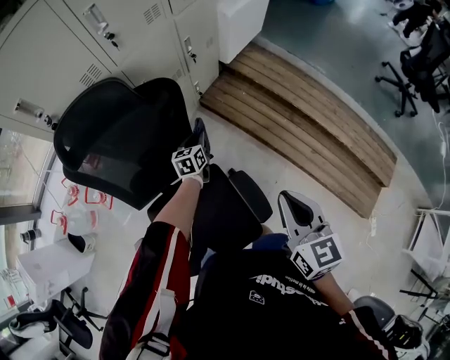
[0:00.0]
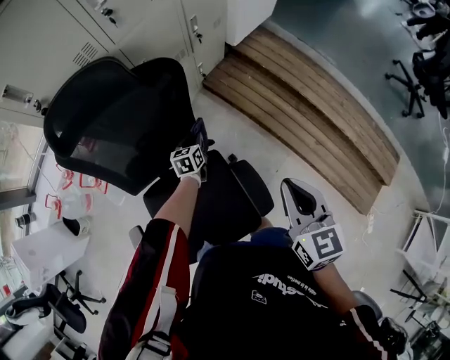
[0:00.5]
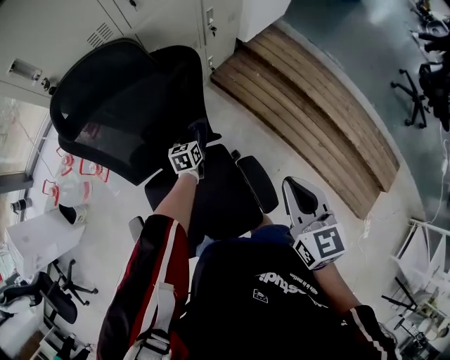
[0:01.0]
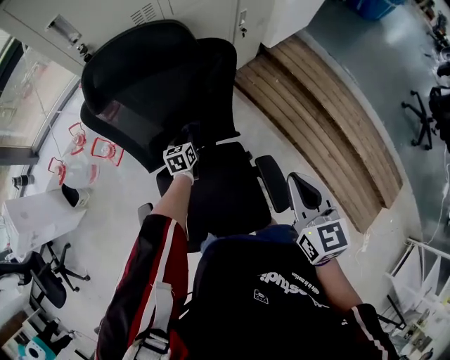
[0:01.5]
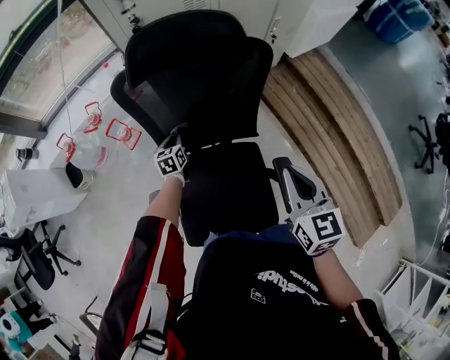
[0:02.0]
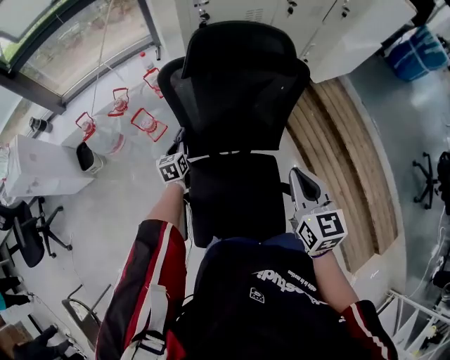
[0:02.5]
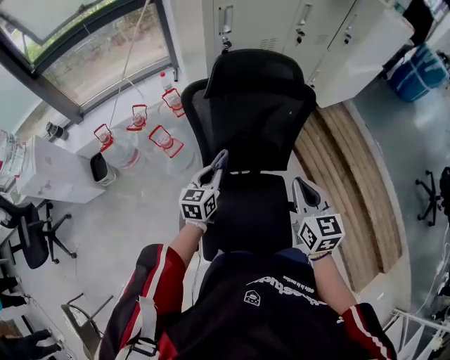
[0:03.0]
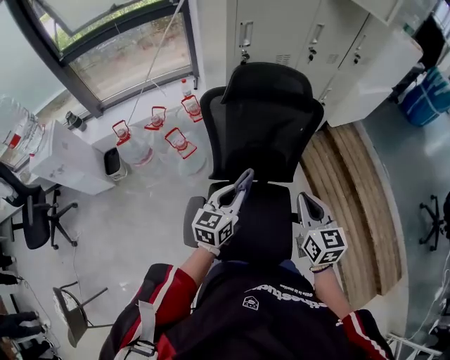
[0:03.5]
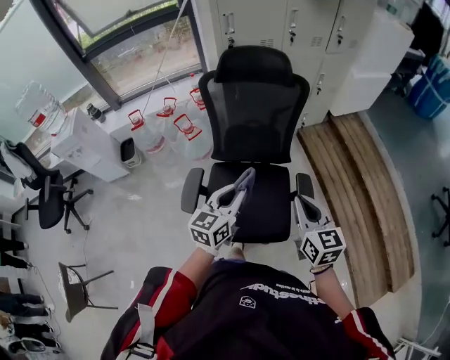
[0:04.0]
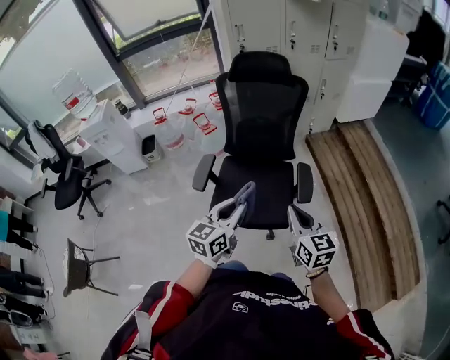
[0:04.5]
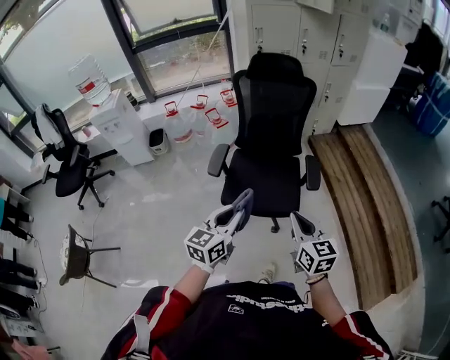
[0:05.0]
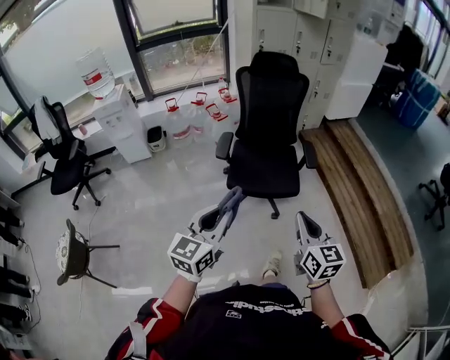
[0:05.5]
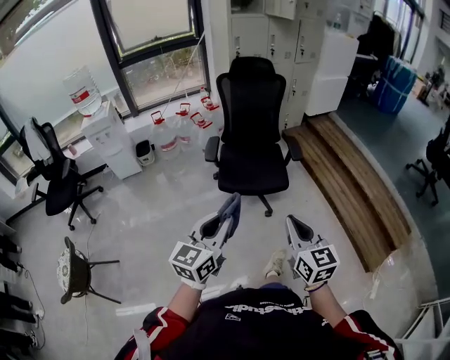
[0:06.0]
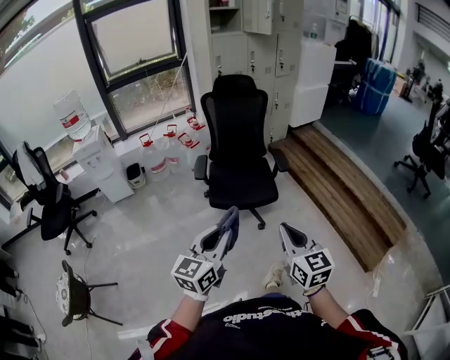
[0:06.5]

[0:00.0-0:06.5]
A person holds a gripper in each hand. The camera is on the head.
0:00.0 to 0:02.0: The right gripper moves to the left, roughly 20 cm; the left gripper travels to the left by approximately 35 cm, and rotates approximately 30 degrees.
0:02.0 to 0:04.5: The pair of grippers is taken backward, roughly 50 cm. The right gripper swivels about 20 degrees. Meanwhile the left gripper is displaced upward by approximately 35 cm, and turns by about 30 degrees.
0:04.5 to 0:06.5: The two grippers travel together, backward, roughly 50 cm.

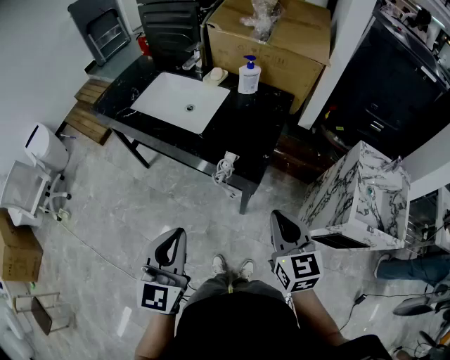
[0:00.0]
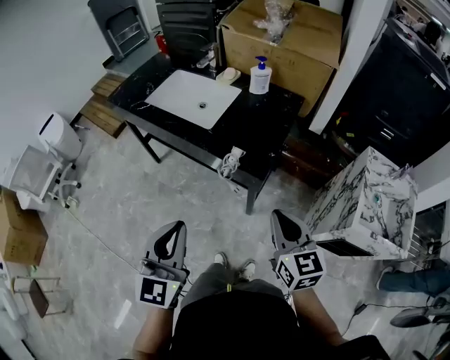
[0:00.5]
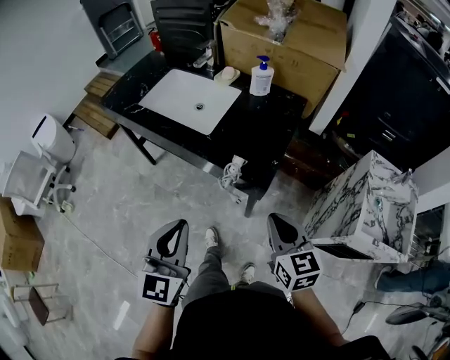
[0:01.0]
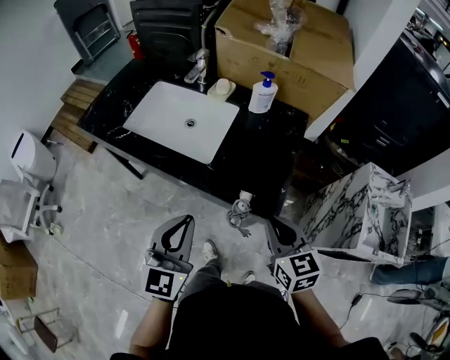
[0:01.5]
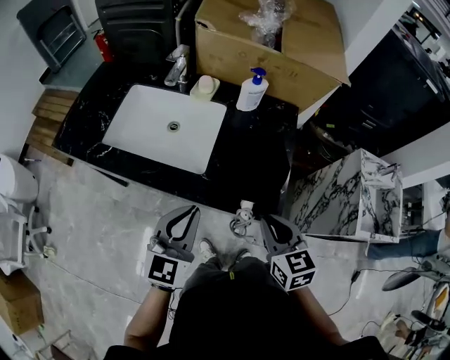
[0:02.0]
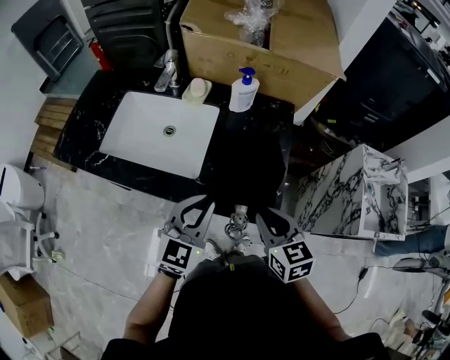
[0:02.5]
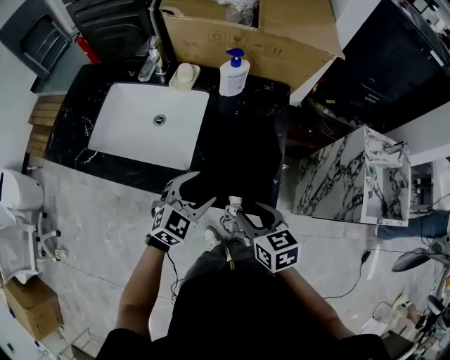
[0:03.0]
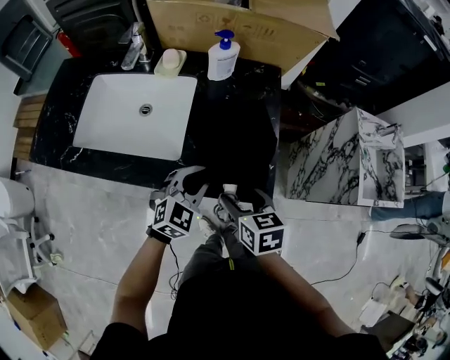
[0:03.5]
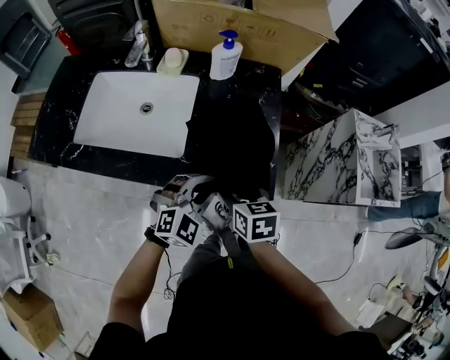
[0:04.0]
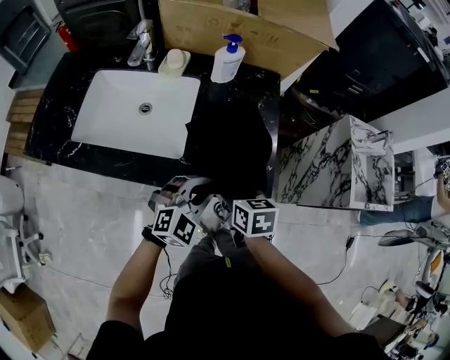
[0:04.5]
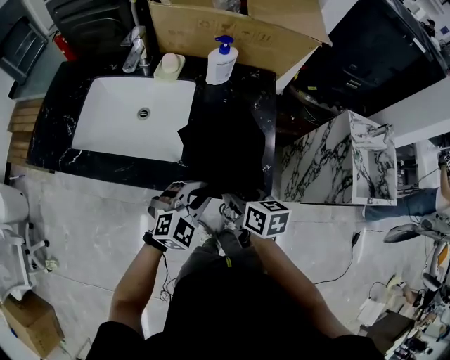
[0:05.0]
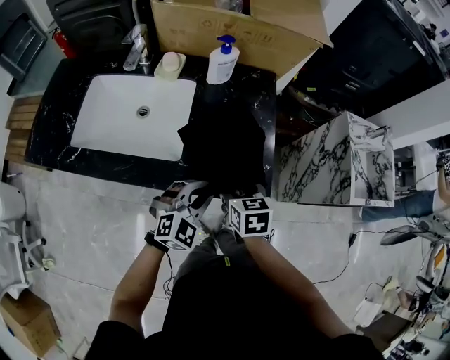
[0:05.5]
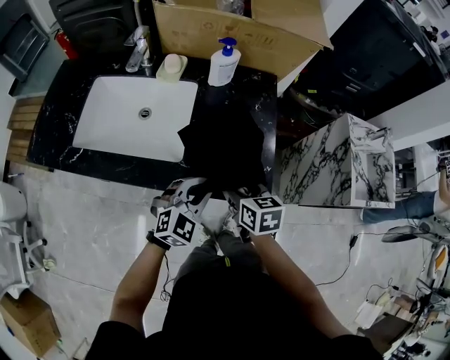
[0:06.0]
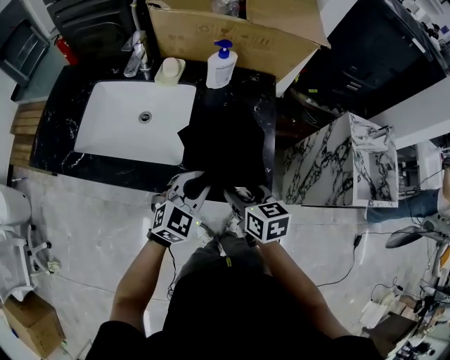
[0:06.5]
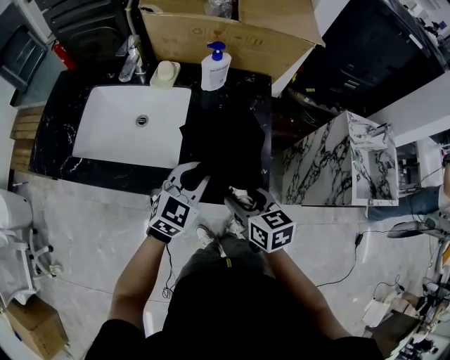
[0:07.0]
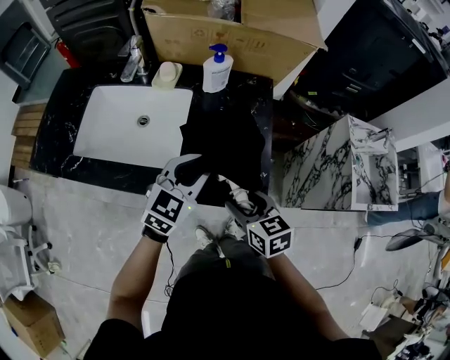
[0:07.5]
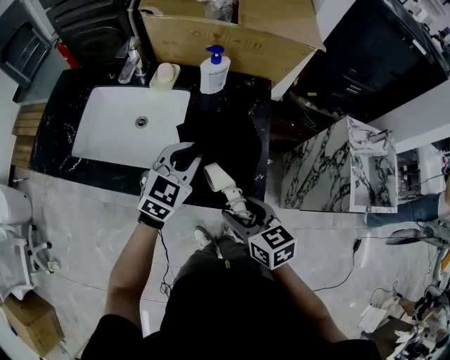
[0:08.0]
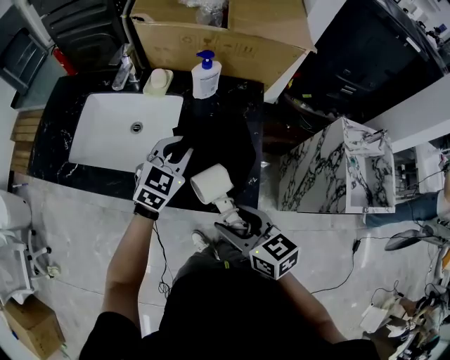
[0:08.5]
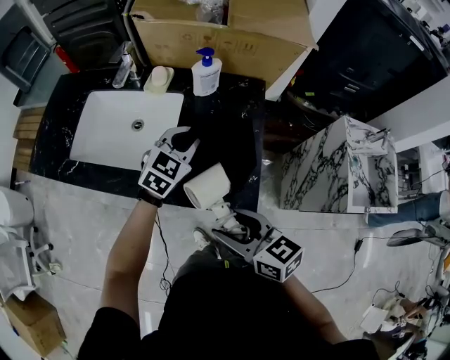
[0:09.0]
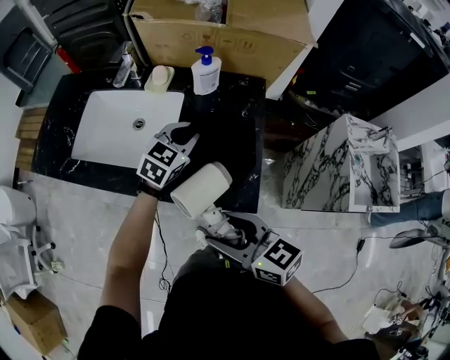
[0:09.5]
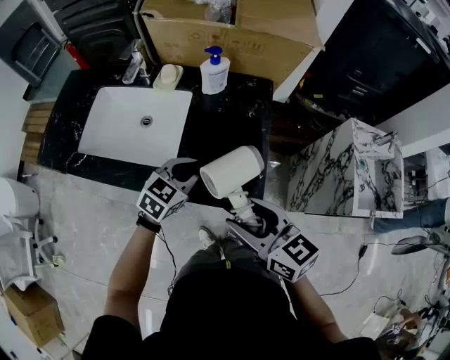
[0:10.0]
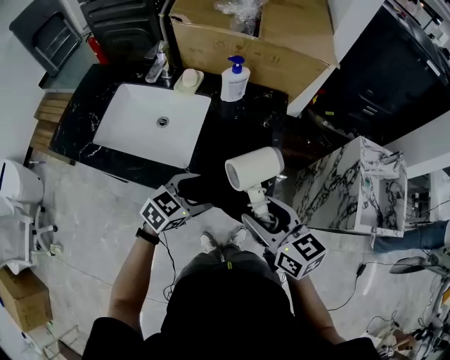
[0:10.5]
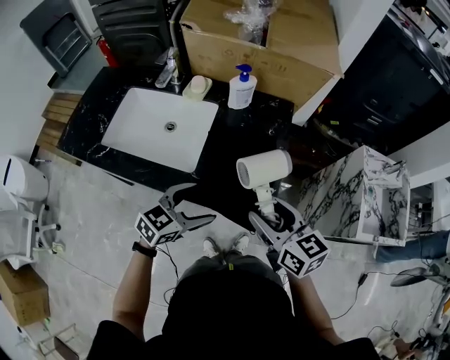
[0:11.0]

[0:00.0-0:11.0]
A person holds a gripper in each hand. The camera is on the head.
0:00.0 to 0:02.0: The right gripper heads forward and to the left, covering approximately 20 cm, while the left gripper travels forward by approximately 25 cm, and changes its angle by about 20 degrees.
0:02.0 to 0:03.5: The right gripper is displaced downward by about 10 cm, and opens, while the left gripper is displaced downward, to the right and forward by some 20 cm, turns by about 40 degrees, and opens, then closes once more.
0:03.5 to 0:05.5: The left gripper moves roughly 5 cm.
0:05.5 to 0:07.5: The left gripper goes roughly 10 cm forward and upward, and swivels approximately 20 degrees, while the right gripper ends up approximately 5 cm from where it was.
0:07.5 to 0:09.0: The left gripper shifts approximately 10 cm forward. The right gripper goes roughly 10 cm upward and backward, and changes its angle by approximately 20 degrees.
0:09.0 to 0:11.0: The right gripper is displaced to the right by roughly 5 cm. The left gripper travels backward by roughly 20 cm, changes its angle by approximately 20 degrees, and opens up.

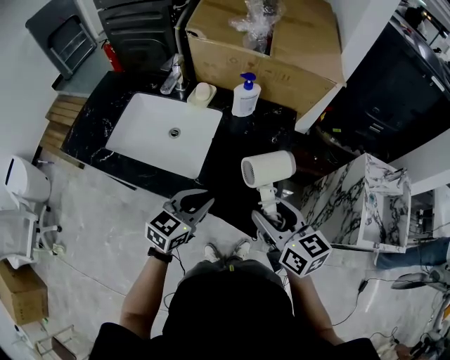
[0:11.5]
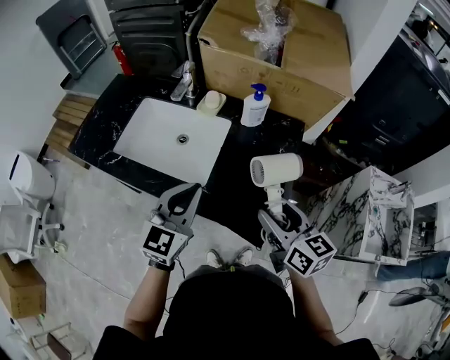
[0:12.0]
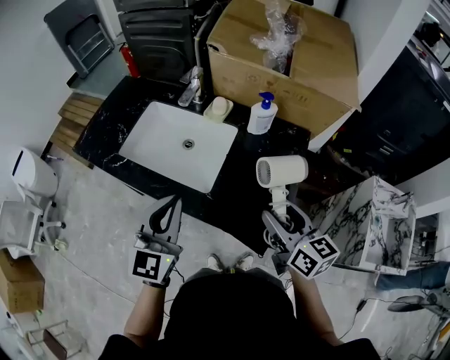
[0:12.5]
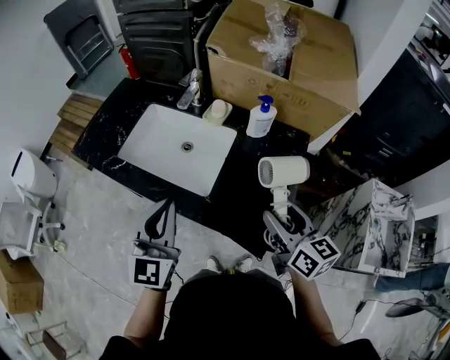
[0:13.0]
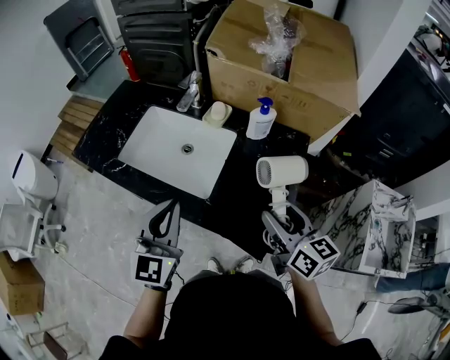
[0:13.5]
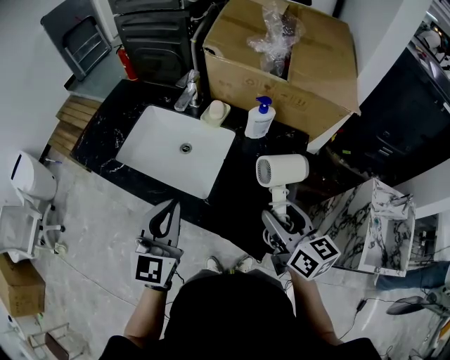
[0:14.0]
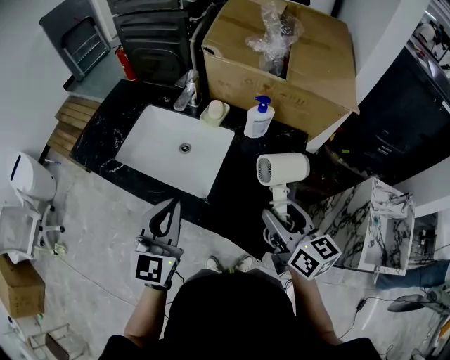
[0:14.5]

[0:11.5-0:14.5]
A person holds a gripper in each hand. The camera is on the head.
0:11.5 to 0:13.0: The left gripper moves upward and to the left, approximately 20 cm, and swivels roughly 40 degrees, while the right gripper moves forward, roughly 5 cm.
0:13.0 to 0:14.5: There are only small adjustments of the grippers.

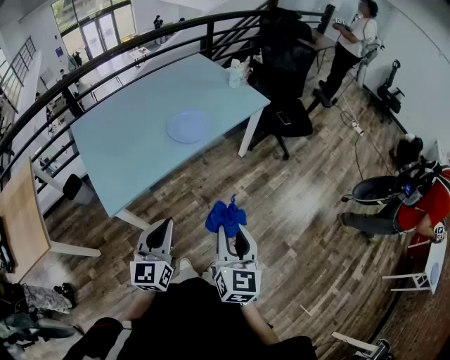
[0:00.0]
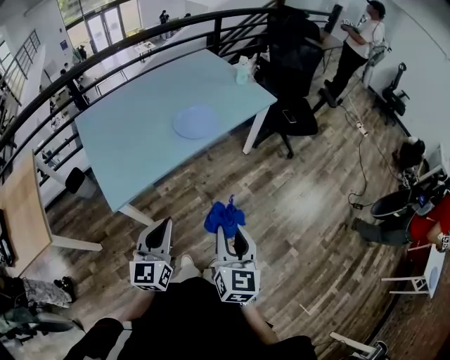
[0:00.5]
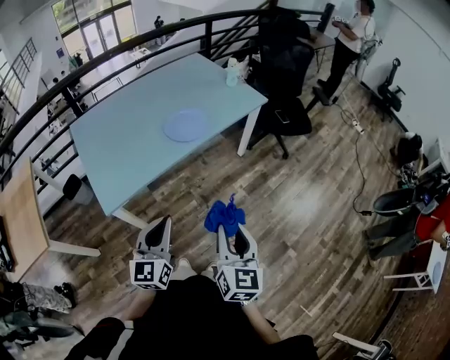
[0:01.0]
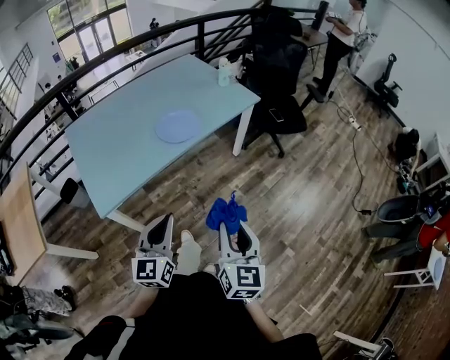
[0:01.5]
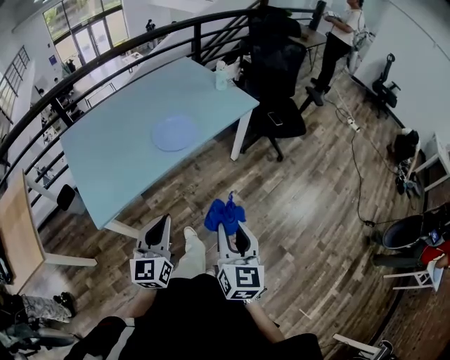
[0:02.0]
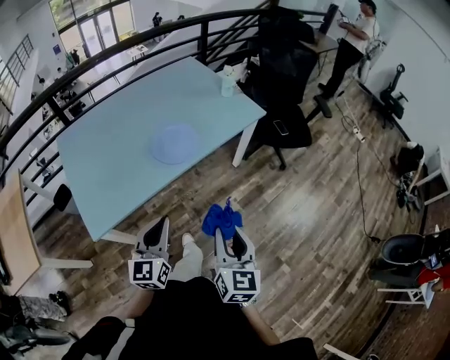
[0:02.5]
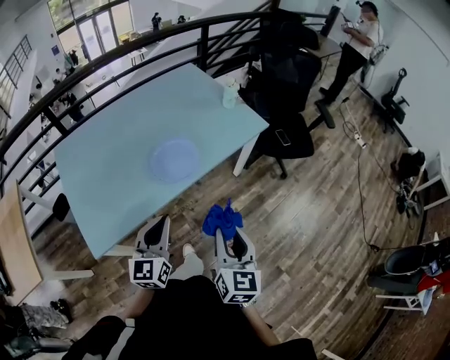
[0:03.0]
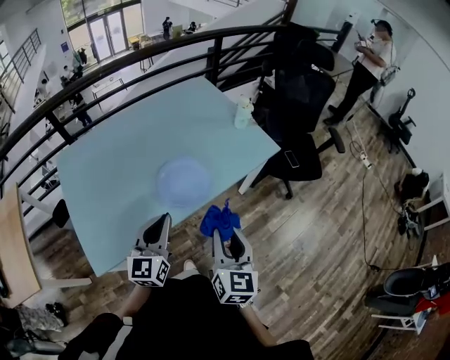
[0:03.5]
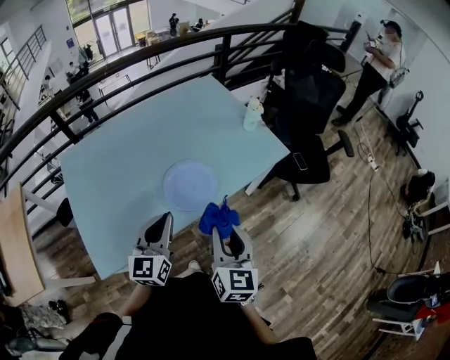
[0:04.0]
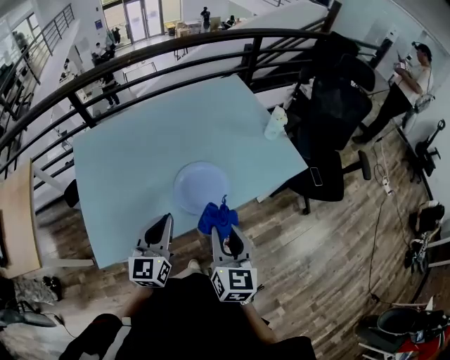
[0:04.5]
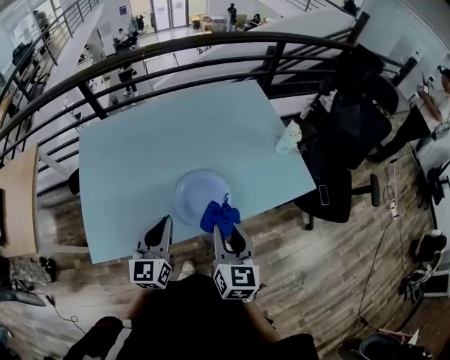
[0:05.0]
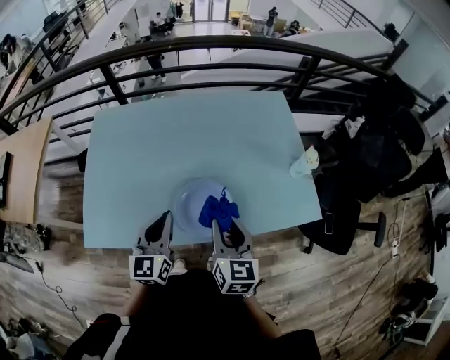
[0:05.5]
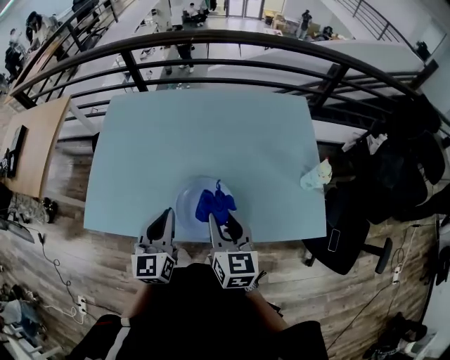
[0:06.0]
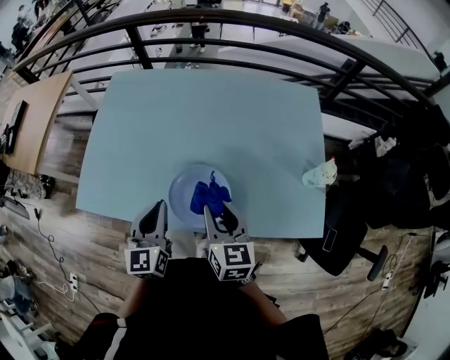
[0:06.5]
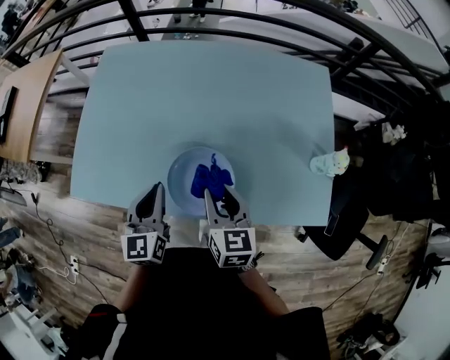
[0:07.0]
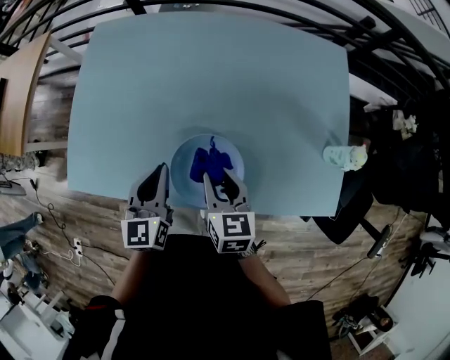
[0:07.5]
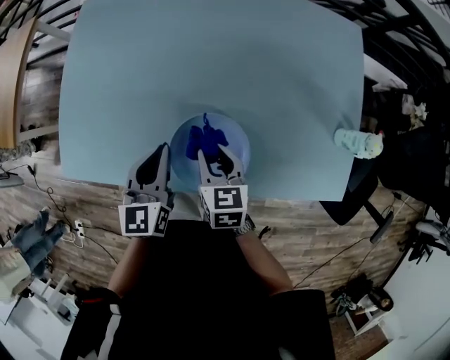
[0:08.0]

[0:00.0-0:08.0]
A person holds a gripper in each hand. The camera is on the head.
0:00.0 to 0:02.0: The left gripper heads forward and to the right, covering some 10 cm, while the right gripper heads to the right, covering roughly 5 cm.
0:02.0 to 0:04.0: The two grippers go approximately 30 cm forward.
0:04.0 to 0:06.0: The right gripper moves approximately 25 cm, and rotates about 40 degrees. The left gripper changes place by roughly 10 cm, and swivels some 40 degrees.
0:06.0 to 0:08.0: Both grippers travel together downward and forward, roughly 20 cm. The right gripper changes its angle by roughly 30 degrees.
